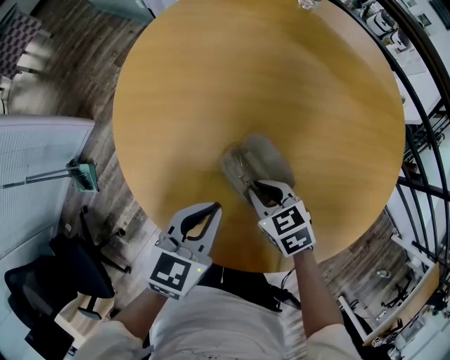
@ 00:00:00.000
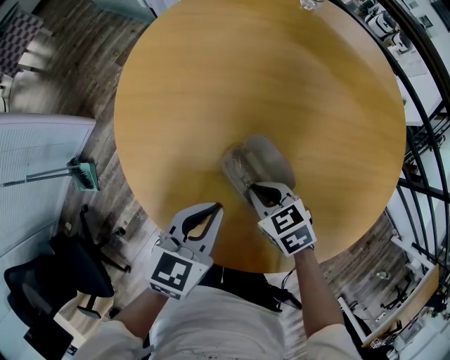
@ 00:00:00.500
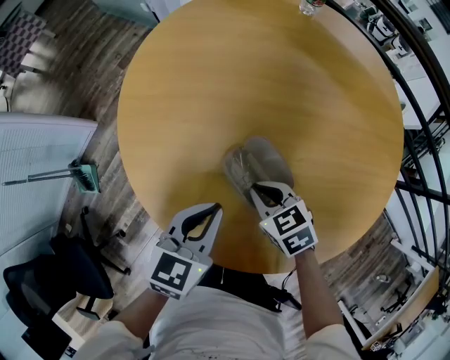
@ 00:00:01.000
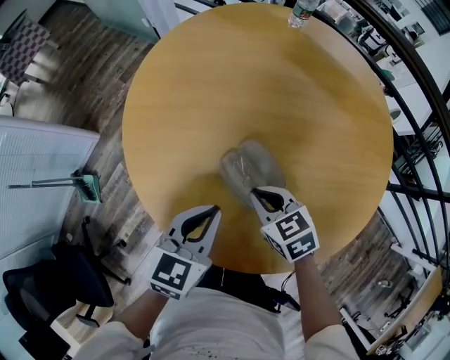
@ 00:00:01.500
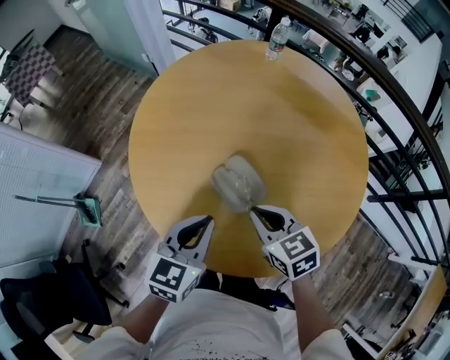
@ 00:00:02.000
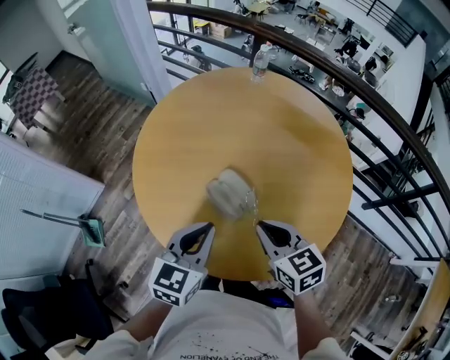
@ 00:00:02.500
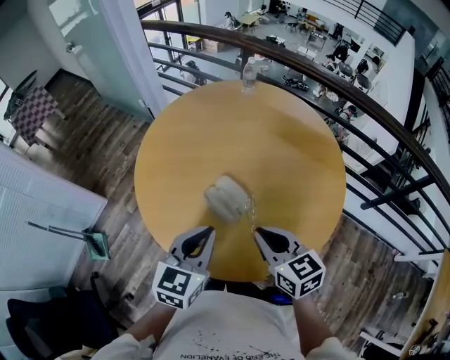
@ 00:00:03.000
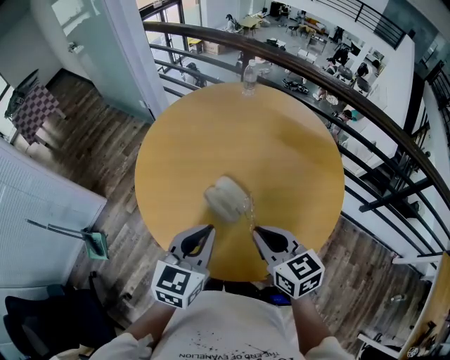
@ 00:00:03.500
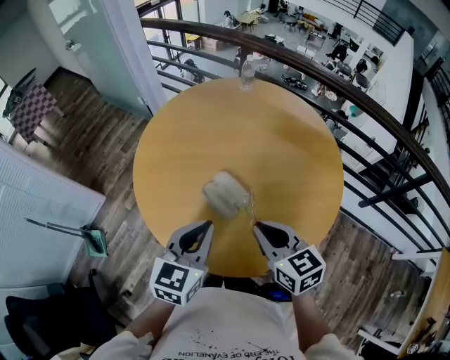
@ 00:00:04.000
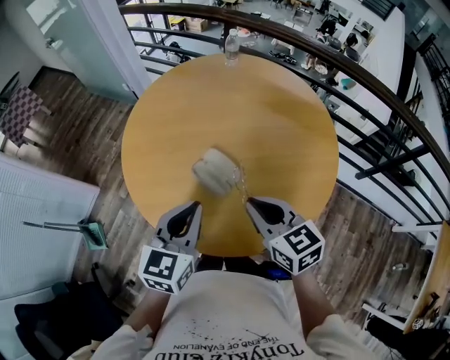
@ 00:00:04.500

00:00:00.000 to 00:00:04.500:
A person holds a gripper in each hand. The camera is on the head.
00:00:00.000 to 00:00:02.000: The right gripper travels upward by approximately 15 cm. The left gripper moves upward, approximately 10 cm.
00:00:02.000 to 00:00:04.500: The right gripper travels upward and backward by some 15 cm, while the left gripper heads upward, covering some 10 cm.

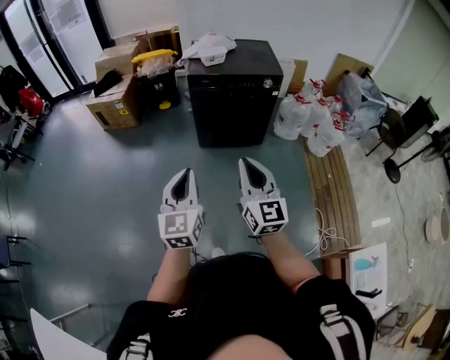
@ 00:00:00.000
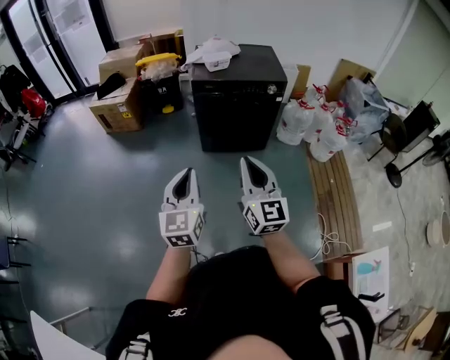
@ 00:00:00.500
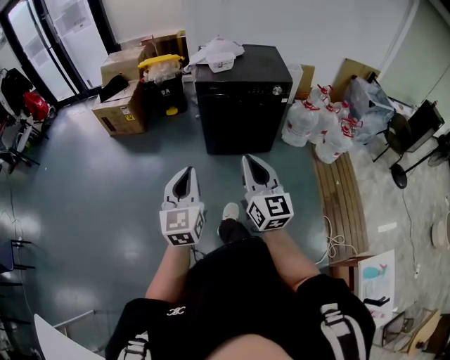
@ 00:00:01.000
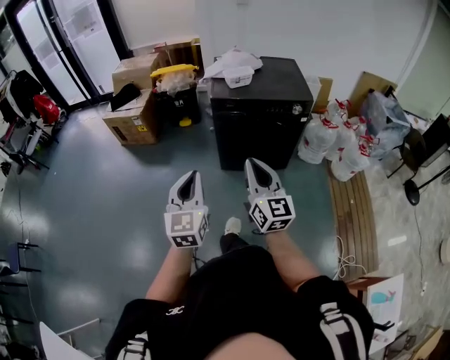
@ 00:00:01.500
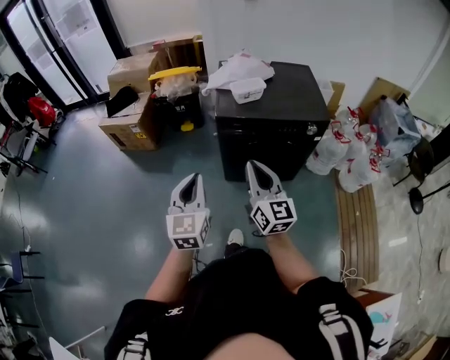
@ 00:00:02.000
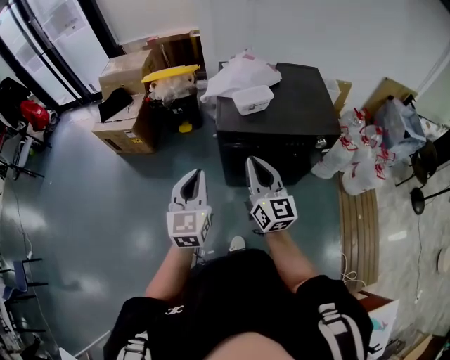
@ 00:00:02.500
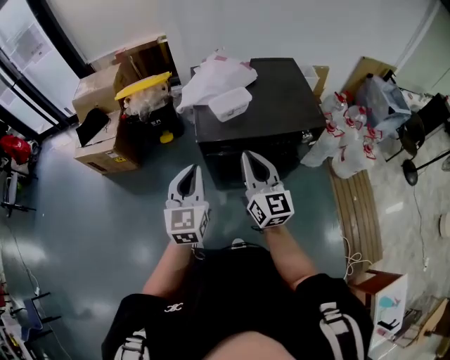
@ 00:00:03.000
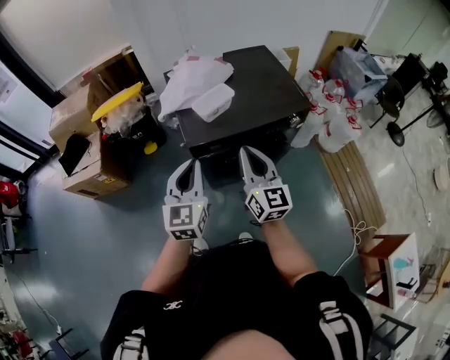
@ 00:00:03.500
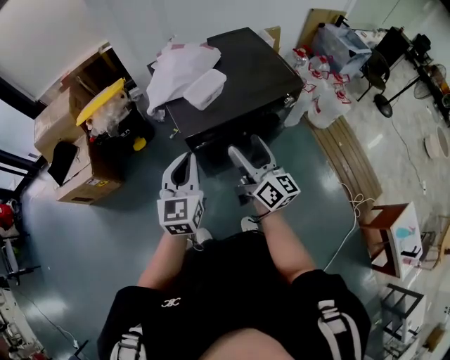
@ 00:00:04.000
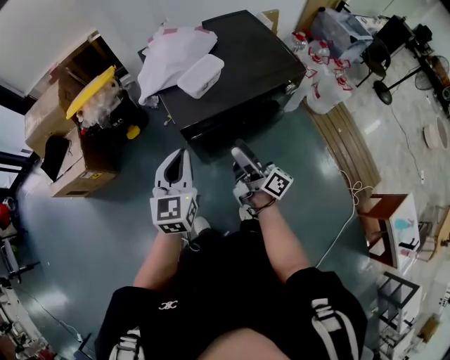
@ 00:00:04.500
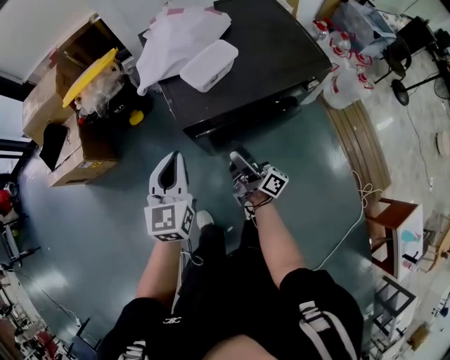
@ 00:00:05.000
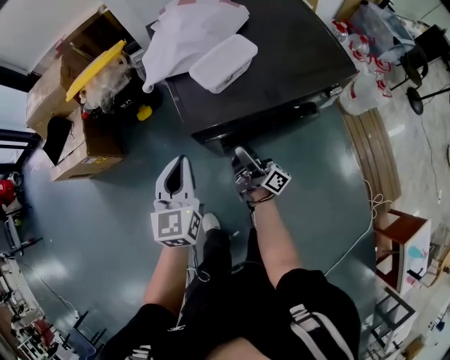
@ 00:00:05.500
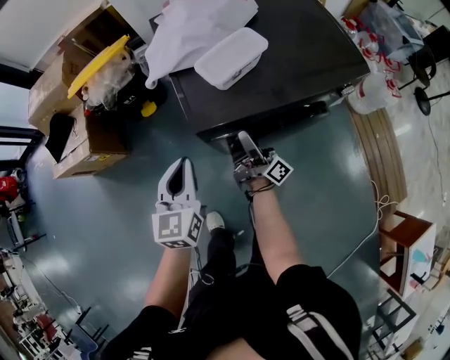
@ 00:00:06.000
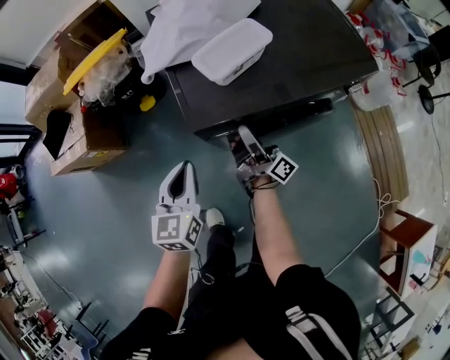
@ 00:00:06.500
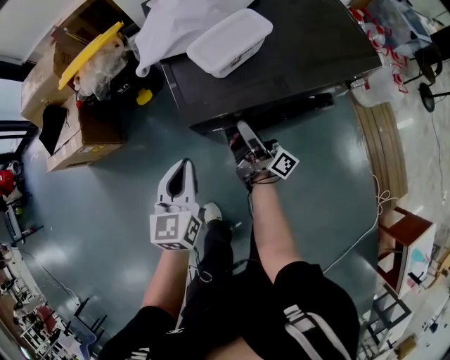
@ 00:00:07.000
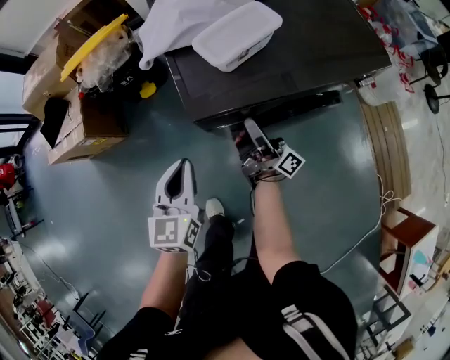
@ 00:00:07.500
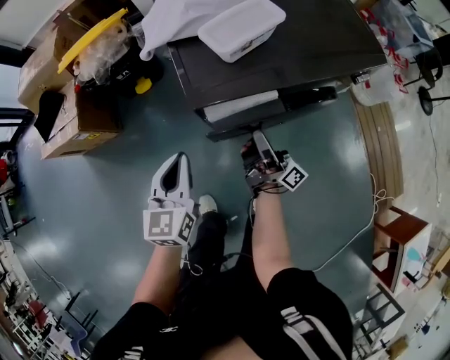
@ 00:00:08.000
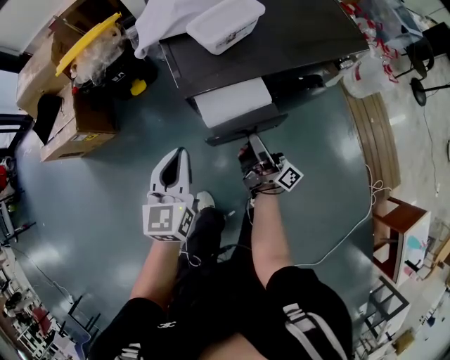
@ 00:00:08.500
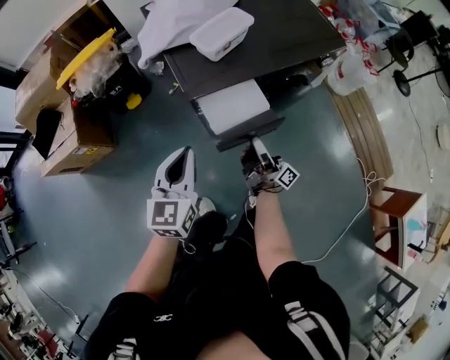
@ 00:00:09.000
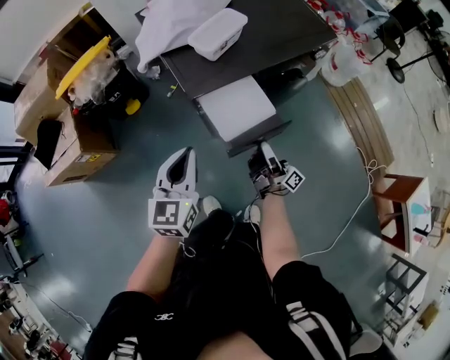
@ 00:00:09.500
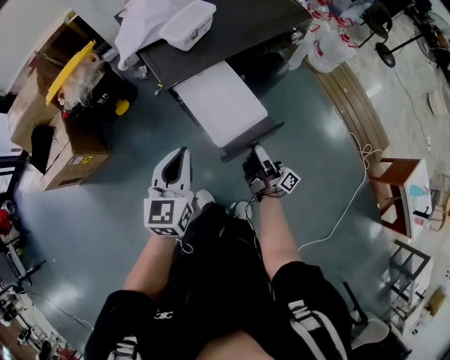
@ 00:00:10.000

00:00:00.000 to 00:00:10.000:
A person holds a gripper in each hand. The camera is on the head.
00:00:00.000 to 00:00:02.000: Both grippers move forward, roughly 35 cm.
00:00:02.000 to 00:00:04.000: The right gripper moves some 20 cm, rotates some 30 degrees, and opens its fingers. The left gripper changes place by some 30 cm, and rotates roughly 30 degrees.
00:00:04.000 to 00:00:06.000: The right gripper travels downward and forward by about 30 cm, and rolls clockwise, seen from behind, by some 40 degrees. Meanwhile the left gripper heads downward and forward, covering approximately 20 cm.
00:00:06.000 to 00:00:08.000: The left gripper shifts approximately 5 cm downward; the right gripper is displaced backward by some 5 cm, and closes.
00:00:08.000 to 00:00:10.000: The right gripper travels backward by about 20 cm, while the left gripper shifts about 15 cm backward, upward and to the right.

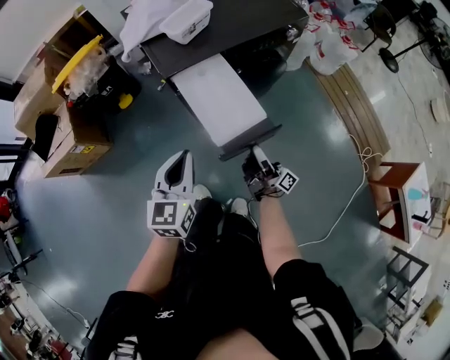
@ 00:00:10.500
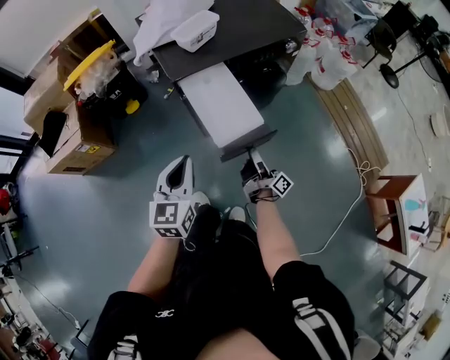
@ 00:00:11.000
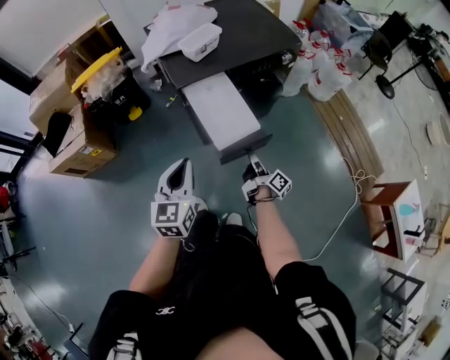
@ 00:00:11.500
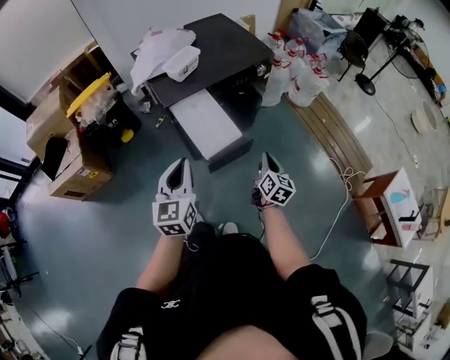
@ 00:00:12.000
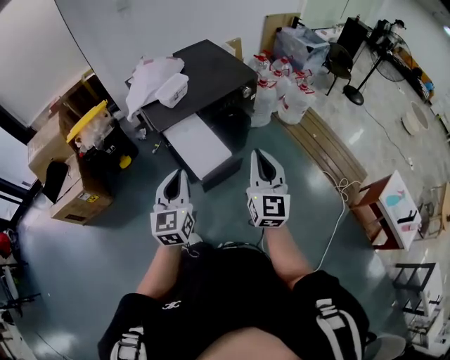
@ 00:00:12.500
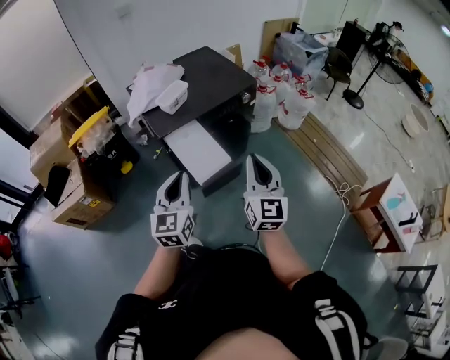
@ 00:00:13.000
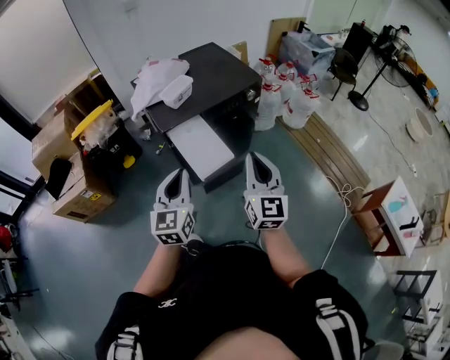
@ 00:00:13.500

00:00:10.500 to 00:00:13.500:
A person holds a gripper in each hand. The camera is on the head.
00:00:10.500 to 00:00:12.000: The left gripper heads upward and backward, covering approximately 10 cm. The right gripper shifts some 15 cm upward and to the right, and angles its fingers downward, by about 40 degrees.
00:00:12.000 to 00:00:13.500: The left gripper shifts by approximately 5 cm, while the right gripper moves upward, some 20 cm, and turns by some 40 degrees.

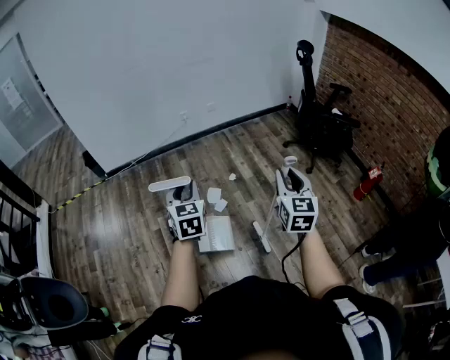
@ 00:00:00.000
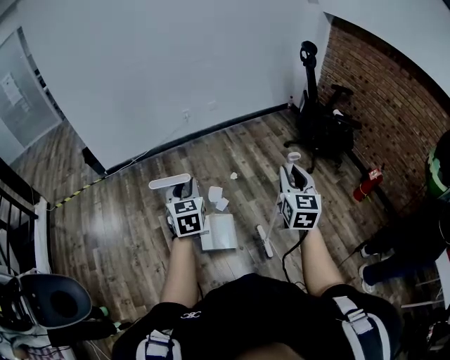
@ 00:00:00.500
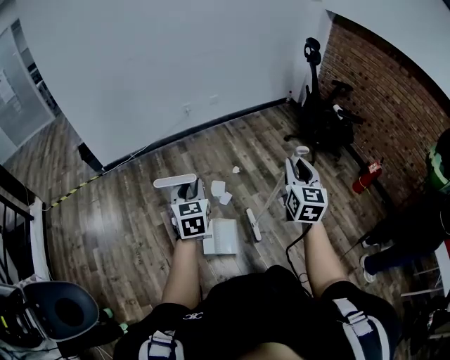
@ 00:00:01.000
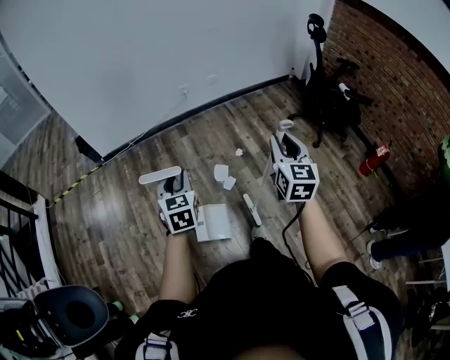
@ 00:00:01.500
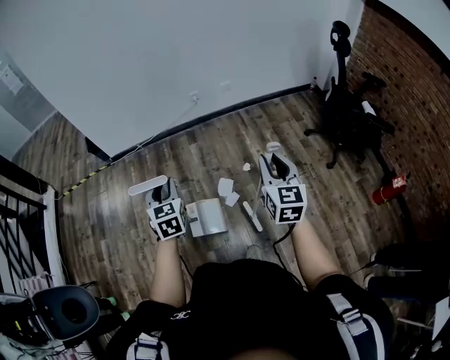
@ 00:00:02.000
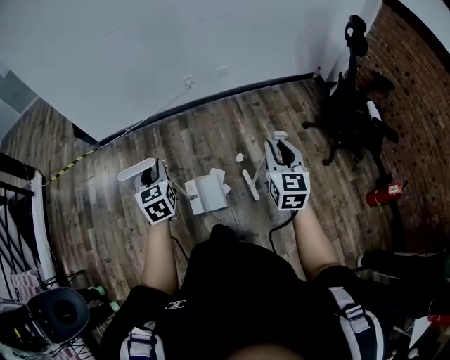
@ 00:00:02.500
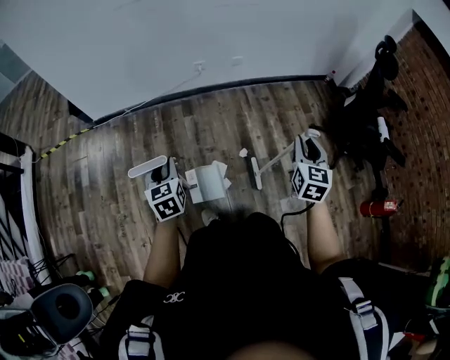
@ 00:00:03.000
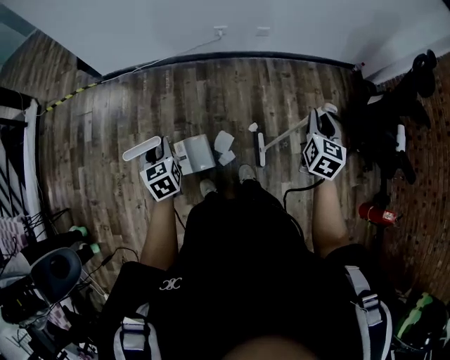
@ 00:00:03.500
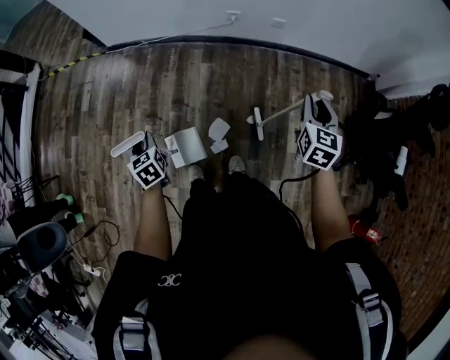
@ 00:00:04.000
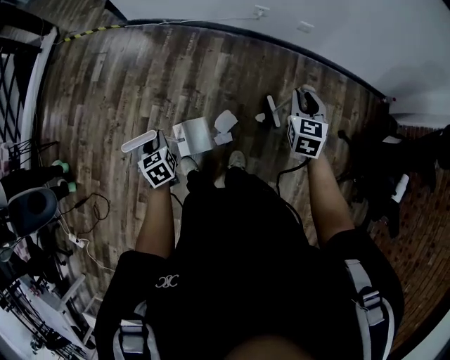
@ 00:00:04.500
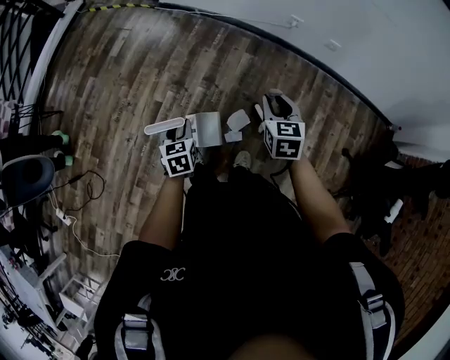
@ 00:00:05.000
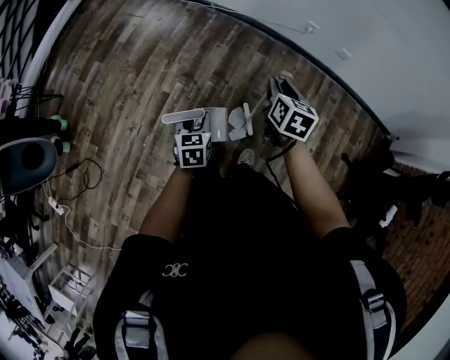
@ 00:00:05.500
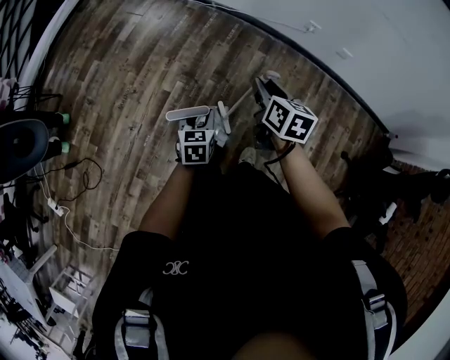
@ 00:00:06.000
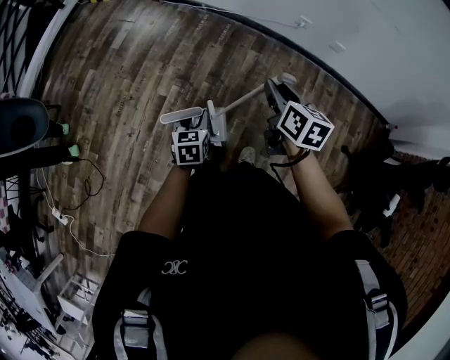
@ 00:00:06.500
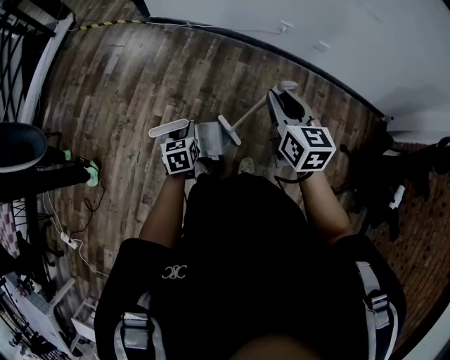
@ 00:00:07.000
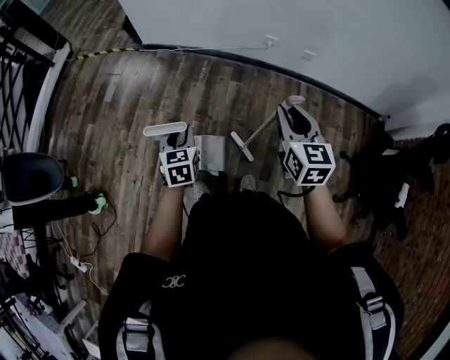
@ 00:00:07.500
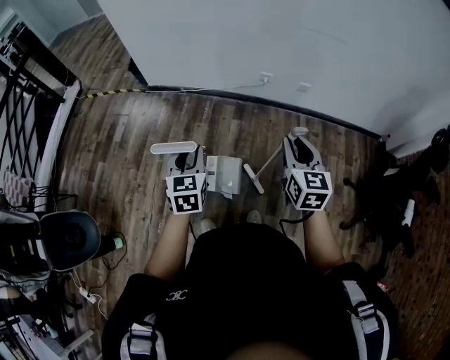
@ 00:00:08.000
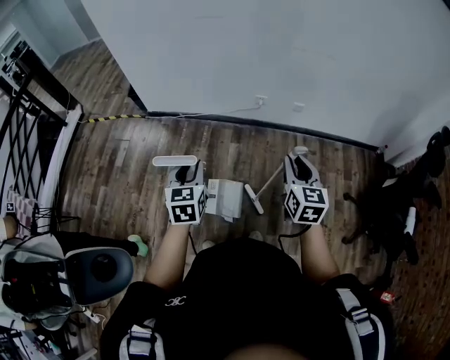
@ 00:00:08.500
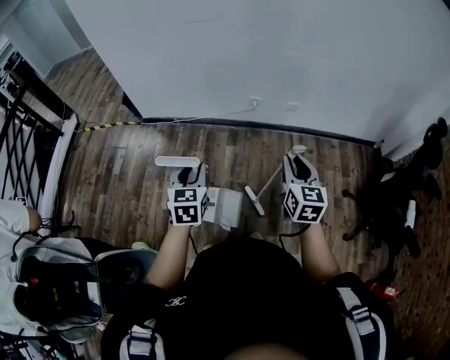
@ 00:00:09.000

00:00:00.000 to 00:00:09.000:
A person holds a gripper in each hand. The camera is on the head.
00:00:00.000 to 00:00:02.000: The left gripper travels forward and to the left by approximately 20 cm. The right gripper is displaced forward by some 25 cm.
00:00:02.000 to 00:00:04.500: The right gripper moves approximately 50 cm, and swivels roughly 30 degrees, while the left gripper moves downward, roughly 25 cm, and swivels about 50 degrees.
00:00:04.500 to 00:00:07.000: The right gripper shifts about 25 cm to the left, and changes its angle by roughly 30 degrees.
00:00:07.000 to 00:00:09.000: The left gripper shifts roughly 30 cm upward, to the right and forward, and swivels some 30 degrees. Meanwhile the right gripper travels to the right by roughly 20 cm, and turns by about 20 degrees.
